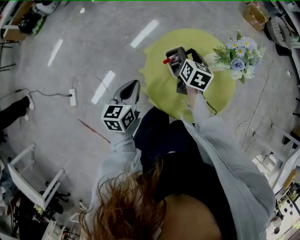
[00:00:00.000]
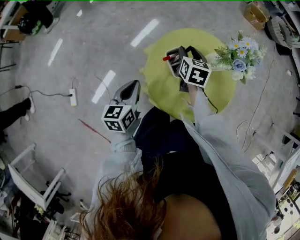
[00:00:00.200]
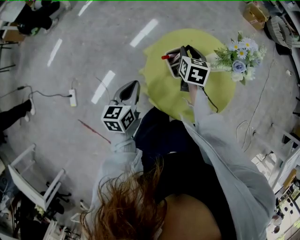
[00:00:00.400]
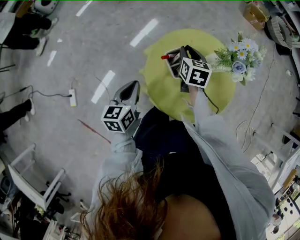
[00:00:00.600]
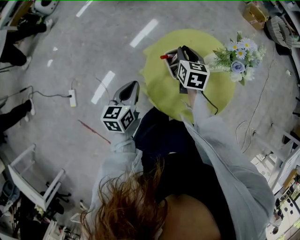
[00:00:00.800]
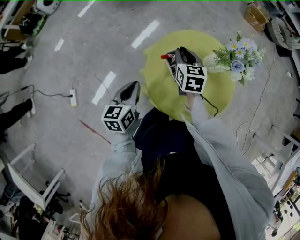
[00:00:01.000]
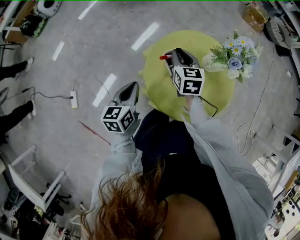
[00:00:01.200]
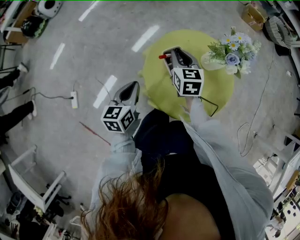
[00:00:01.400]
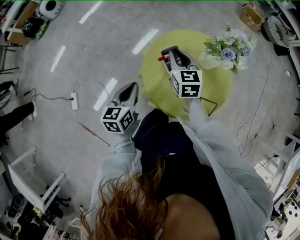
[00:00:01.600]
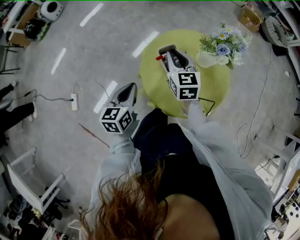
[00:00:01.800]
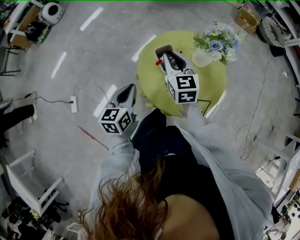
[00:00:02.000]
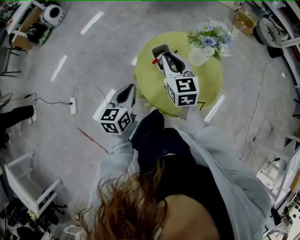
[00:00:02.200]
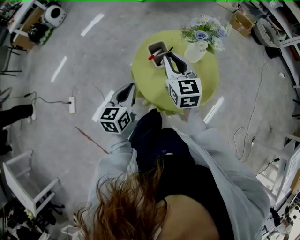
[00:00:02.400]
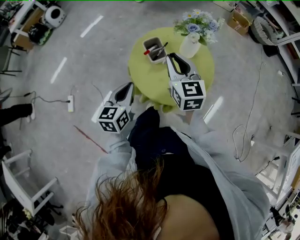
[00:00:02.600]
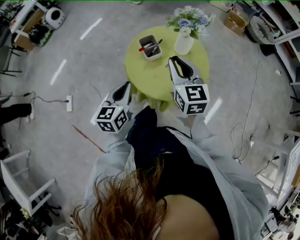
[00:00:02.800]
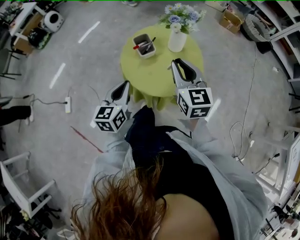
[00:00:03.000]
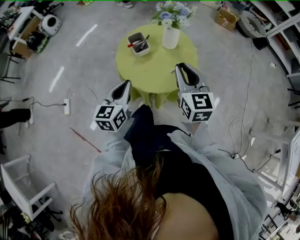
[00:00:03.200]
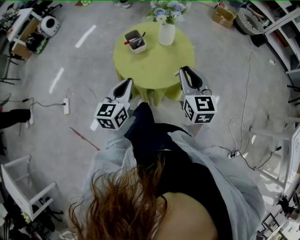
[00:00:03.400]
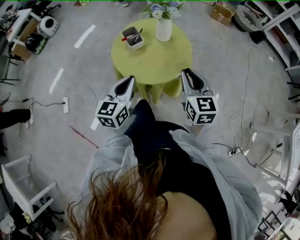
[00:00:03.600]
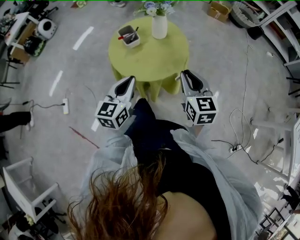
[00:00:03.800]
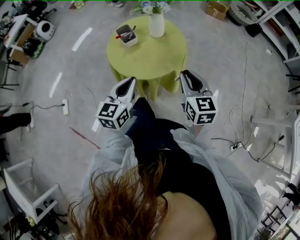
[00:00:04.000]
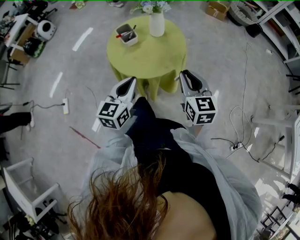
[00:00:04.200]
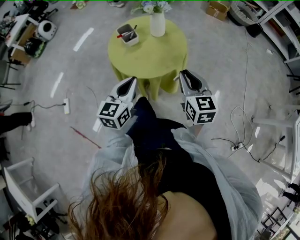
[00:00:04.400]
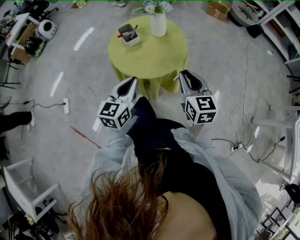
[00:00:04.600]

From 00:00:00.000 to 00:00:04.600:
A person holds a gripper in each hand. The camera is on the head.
From 00:00:00.000 to 00:00:01.600: The right gripper moves upward, roughly 5 cm, turns by roughly 30 degrees, and closes.
From 00:00:01.600 to 00:00:03.000: The left gripper is displaced backward, to the right and upward by about 15 cm, while the right gripper travels backward, upward and to the right by approximately 25 cm.
From 00:00:03.000 to 00:00:04.600: The right gripper is displaced backward, to the right and downward by approximately 20 cm; the left gripper heads to the right and backward, covering some 15 cm.

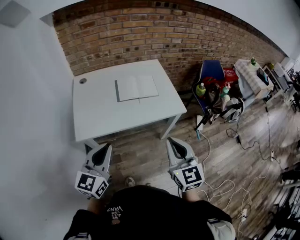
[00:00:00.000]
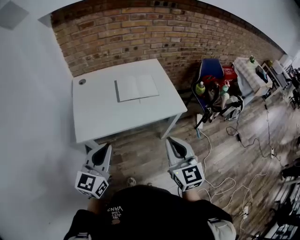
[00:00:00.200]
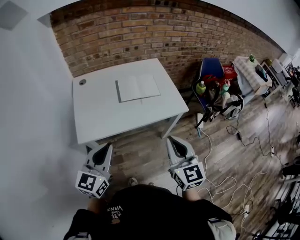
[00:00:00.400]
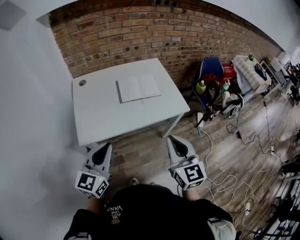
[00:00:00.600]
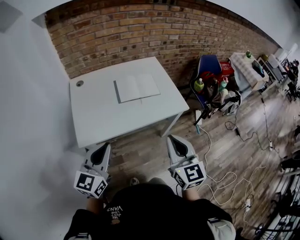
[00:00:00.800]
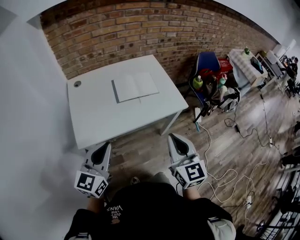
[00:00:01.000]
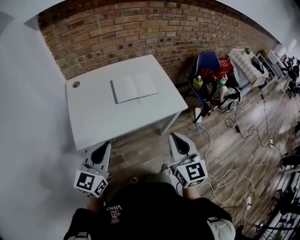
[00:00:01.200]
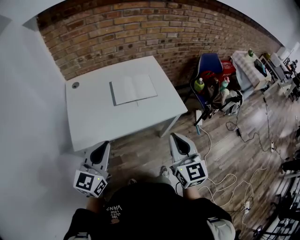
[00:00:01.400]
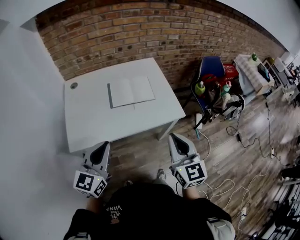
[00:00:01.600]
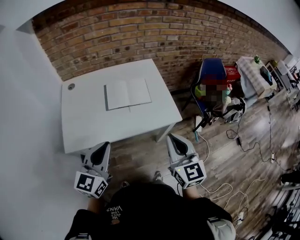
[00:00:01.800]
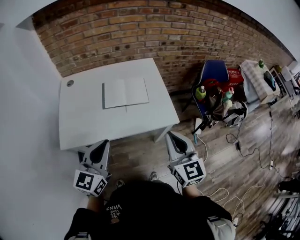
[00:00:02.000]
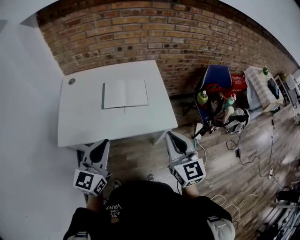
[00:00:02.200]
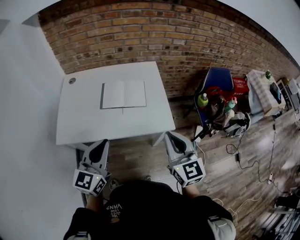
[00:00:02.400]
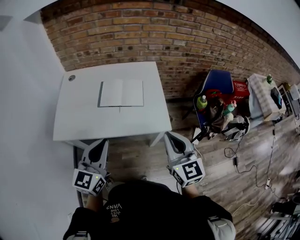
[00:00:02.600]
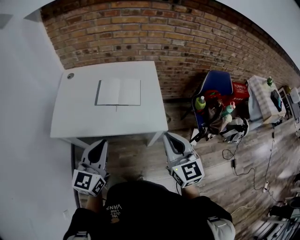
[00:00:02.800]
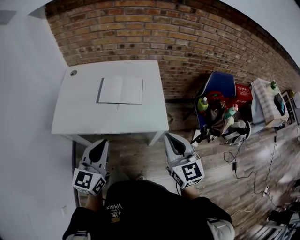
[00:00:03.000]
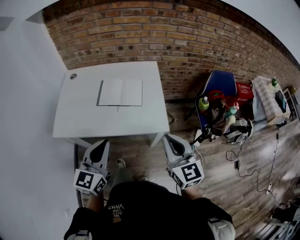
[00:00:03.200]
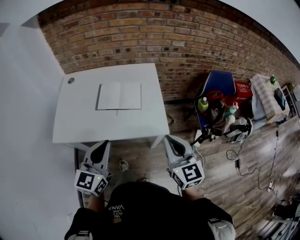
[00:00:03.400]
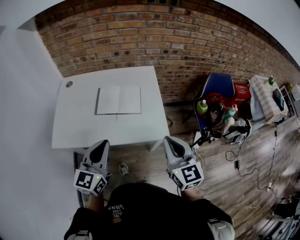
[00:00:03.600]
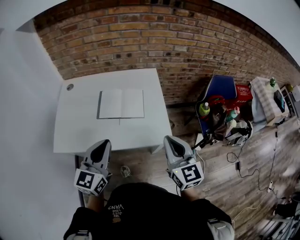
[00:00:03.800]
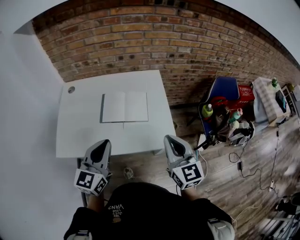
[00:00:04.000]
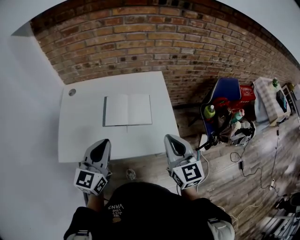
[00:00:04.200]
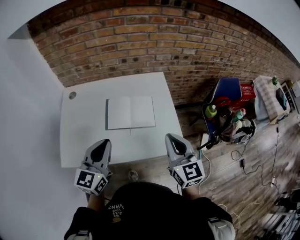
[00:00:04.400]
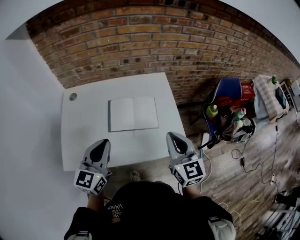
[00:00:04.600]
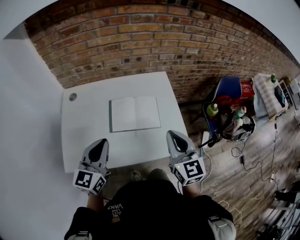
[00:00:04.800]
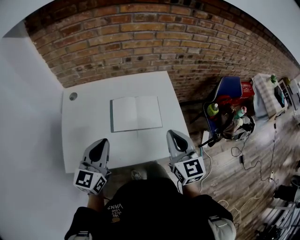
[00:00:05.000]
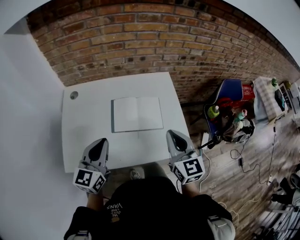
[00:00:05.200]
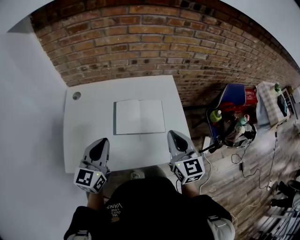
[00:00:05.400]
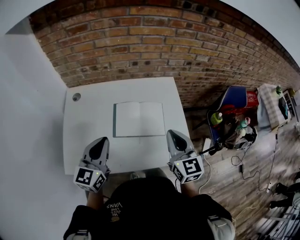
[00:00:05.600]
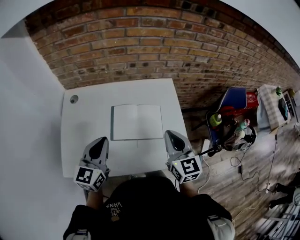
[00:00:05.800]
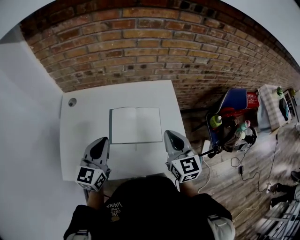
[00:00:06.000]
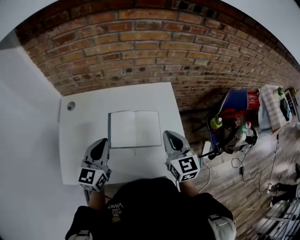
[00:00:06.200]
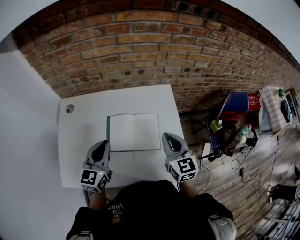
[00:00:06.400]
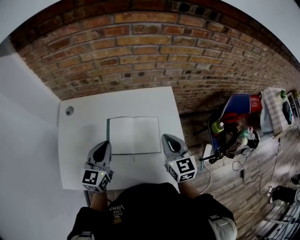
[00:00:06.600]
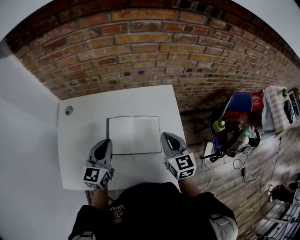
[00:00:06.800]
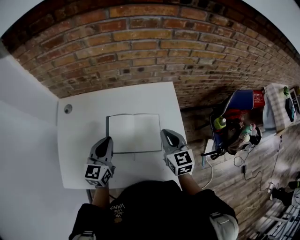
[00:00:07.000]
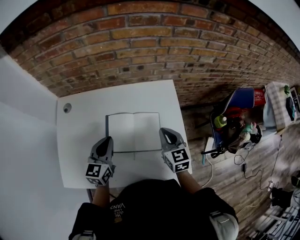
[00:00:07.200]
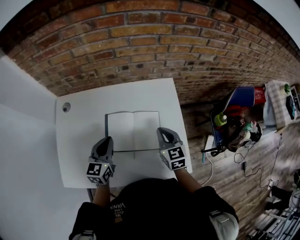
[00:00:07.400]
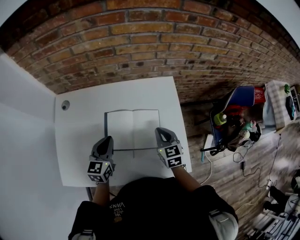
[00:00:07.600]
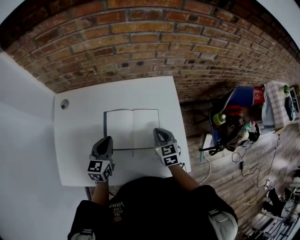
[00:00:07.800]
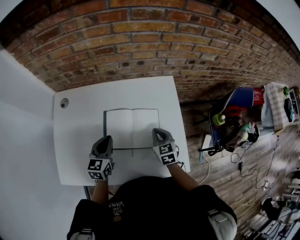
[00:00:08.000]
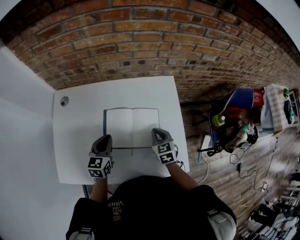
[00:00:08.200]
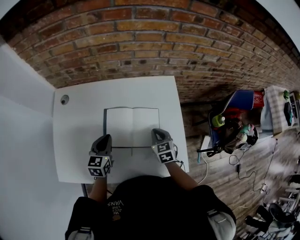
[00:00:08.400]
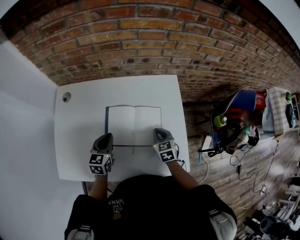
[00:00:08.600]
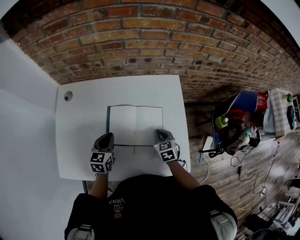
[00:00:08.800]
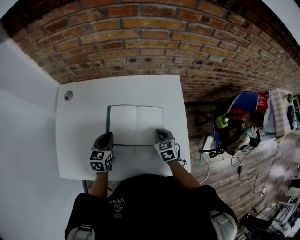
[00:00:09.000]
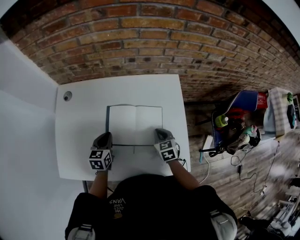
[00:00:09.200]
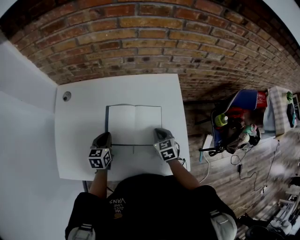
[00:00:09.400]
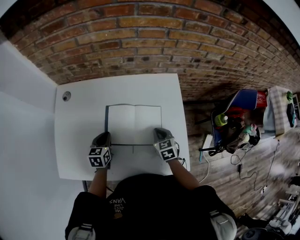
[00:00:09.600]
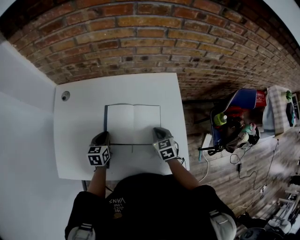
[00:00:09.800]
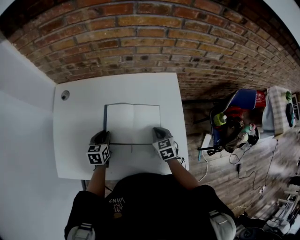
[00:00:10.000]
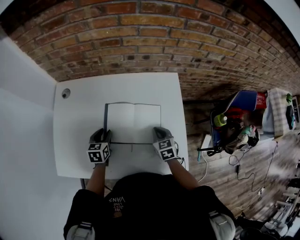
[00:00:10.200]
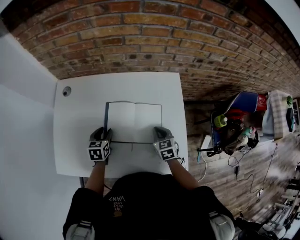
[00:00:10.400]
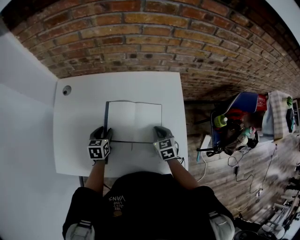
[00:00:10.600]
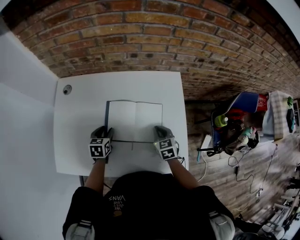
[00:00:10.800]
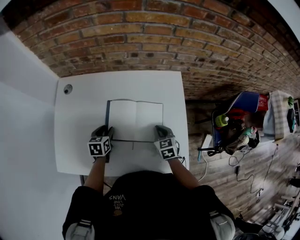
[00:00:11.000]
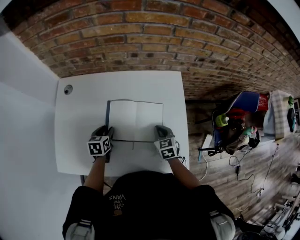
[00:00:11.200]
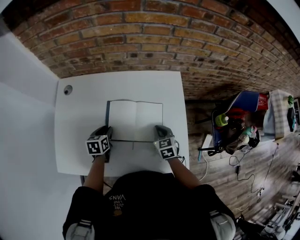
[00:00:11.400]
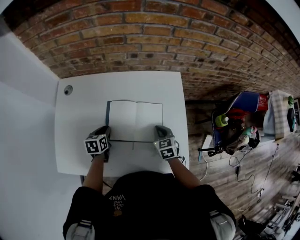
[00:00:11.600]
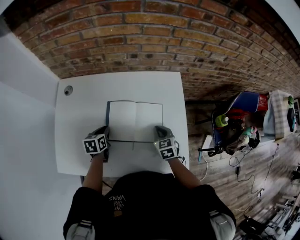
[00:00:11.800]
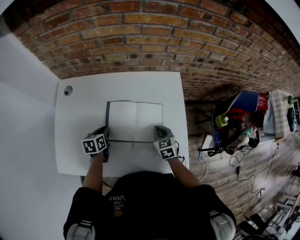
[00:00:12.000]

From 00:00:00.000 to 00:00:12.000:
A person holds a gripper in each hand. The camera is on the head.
From 00:00:00.000 to 00:00:01.600: The grippers both shift forward by approximately 10 cm.
From 00:00:01.600 to 00:00:03.000: Both grippers travel together to the right, some 20 cm.
From 00:00:03.000 to 00:00:04.400: The two grippers go roughly 20 cm forward and to the left.
From 00:00:04.400 to 00:00:06.000: The right gripper shifts about 15 cm forward, while the left gripper travels forward and to the left by approximately 15 cm.
From 00:00:06.000 to 00:00:07.600: Both grippers move downward and forward, about 15 cm.
From 00:00:07.600 to 00:00:09.000: The two grippers go roughly 10 cm downward.
From 00:00:09.000 to 00:00:10.400: The left gripper opens up.
From 00:00:10.400 to 00:00:12.000: The left gripper closes.

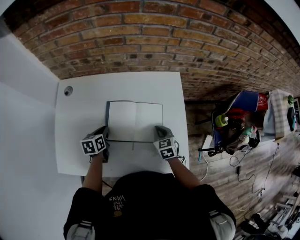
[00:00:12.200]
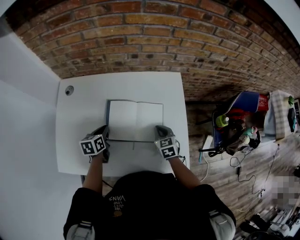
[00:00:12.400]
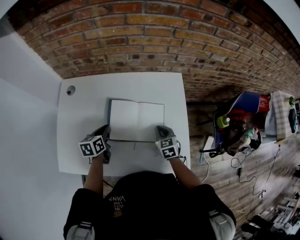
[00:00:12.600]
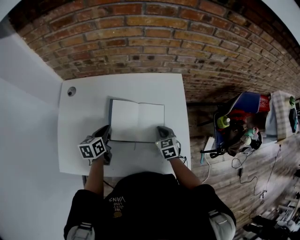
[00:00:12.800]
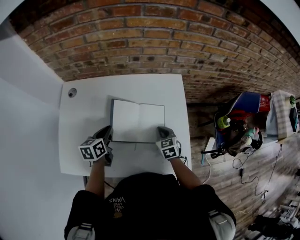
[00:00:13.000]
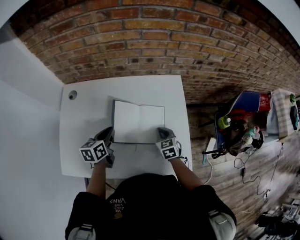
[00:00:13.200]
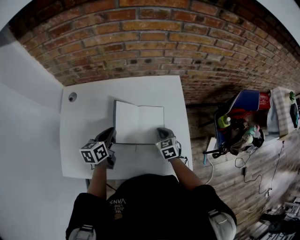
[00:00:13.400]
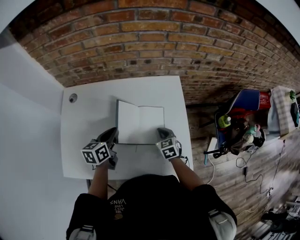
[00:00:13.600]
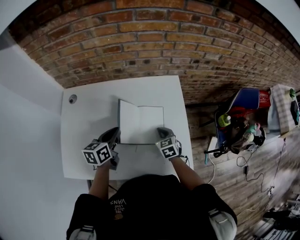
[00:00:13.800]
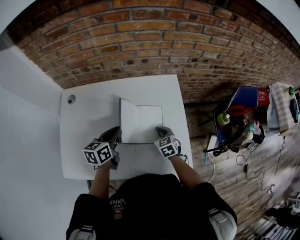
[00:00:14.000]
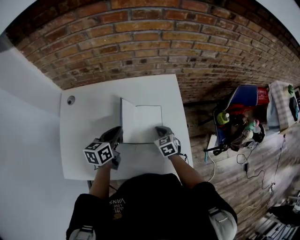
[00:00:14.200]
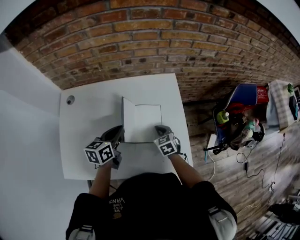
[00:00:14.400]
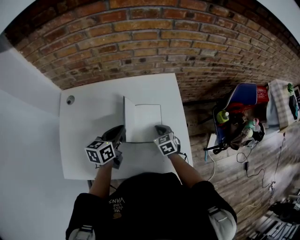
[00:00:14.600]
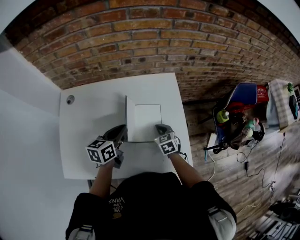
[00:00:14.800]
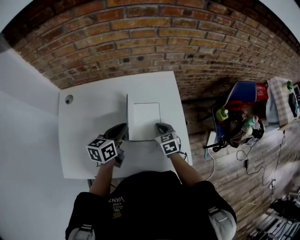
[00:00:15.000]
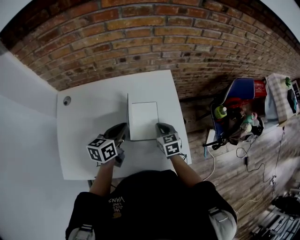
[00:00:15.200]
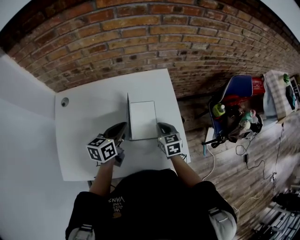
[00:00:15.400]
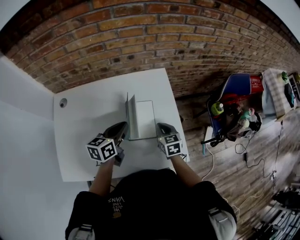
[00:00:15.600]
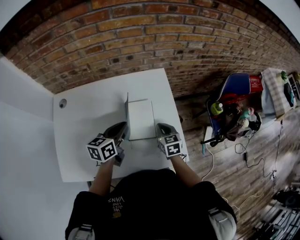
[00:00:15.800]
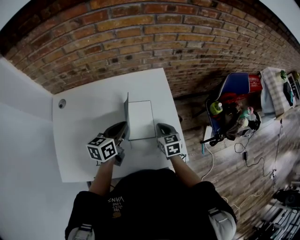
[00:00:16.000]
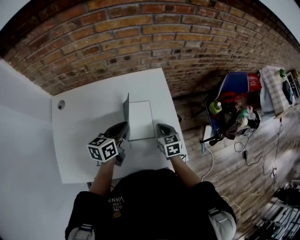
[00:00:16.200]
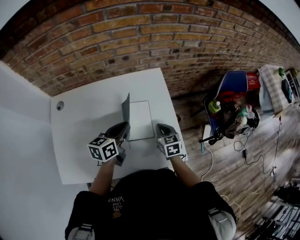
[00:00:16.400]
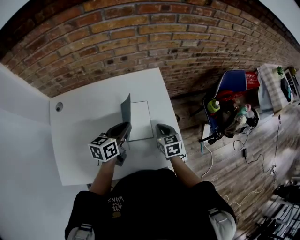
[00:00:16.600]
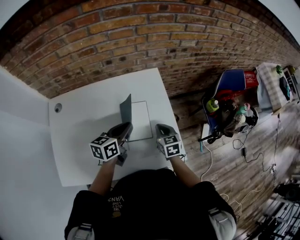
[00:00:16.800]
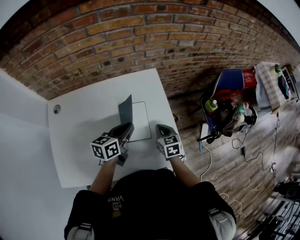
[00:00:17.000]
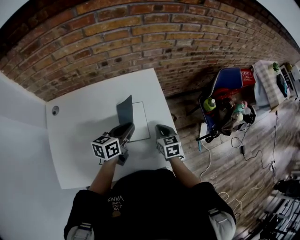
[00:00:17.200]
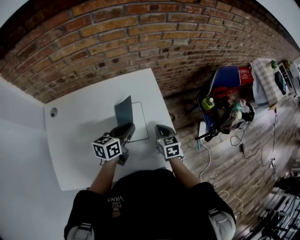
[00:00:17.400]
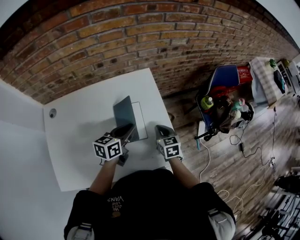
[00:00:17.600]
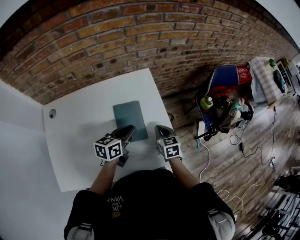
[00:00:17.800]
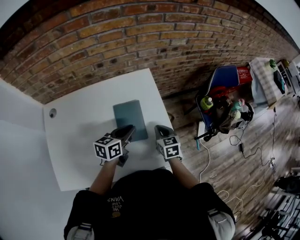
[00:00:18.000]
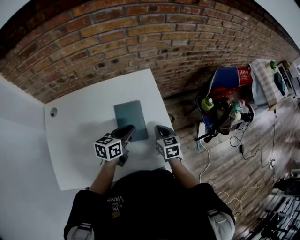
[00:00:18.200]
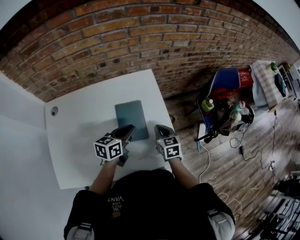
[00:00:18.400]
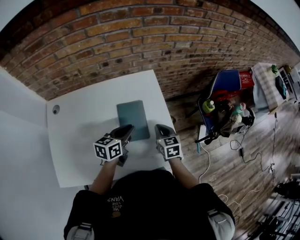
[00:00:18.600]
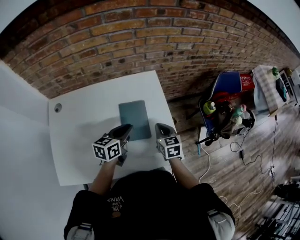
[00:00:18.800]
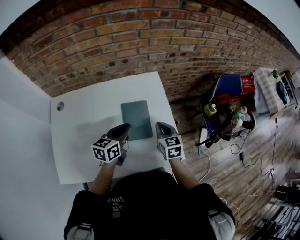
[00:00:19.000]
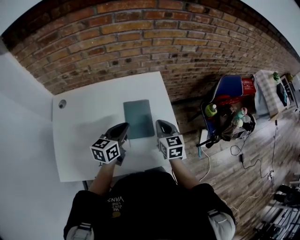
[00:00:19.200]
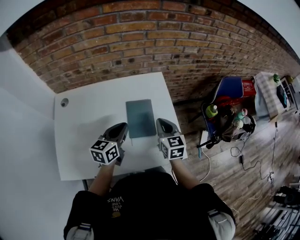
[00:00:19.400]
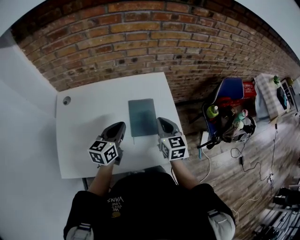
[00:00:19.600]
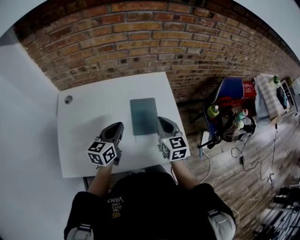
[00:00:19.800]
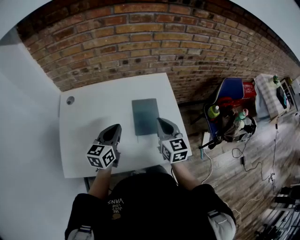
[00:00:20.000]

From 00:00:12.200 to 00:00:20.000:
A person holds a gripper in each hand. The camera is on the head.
From 00:00:12.200 to 00:00:13.800: The left gripper is displaced upward and to the right by some 15 cm.
From 00:00:13.800 to 00:00:15.400: The left gripper shifts about 10 cm to the right. The right gripper shifts by approximately 5 cm.
From 00:00:15.400 to 00:00:16.800: The left gripper travels to the right by roughly 5 cm.
From 00:00:16.800 to 00:00:18.400: The grippers stay close to where they were, moving slightly.
From 00:00:18.400 to 00:00:20.000: The left gripper goes approximately 20 cm to the left, backward and upward, and changes its angle by roughly 20 degrees. Meanwhile the right gripper travels upward, to the left and backward by approximately 20 cm, and rotates some 20 degrees.
